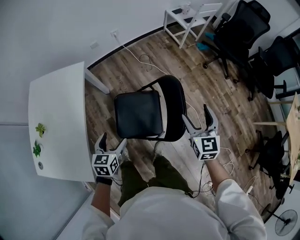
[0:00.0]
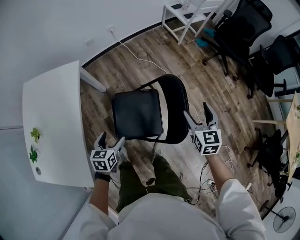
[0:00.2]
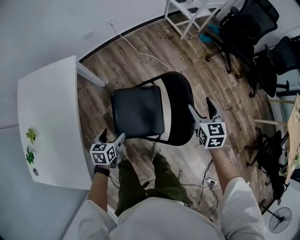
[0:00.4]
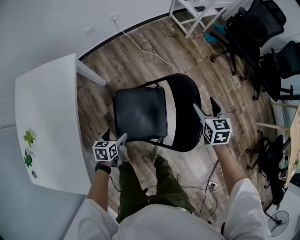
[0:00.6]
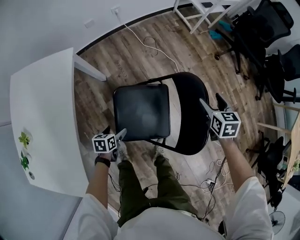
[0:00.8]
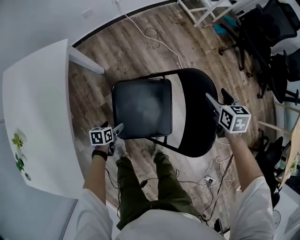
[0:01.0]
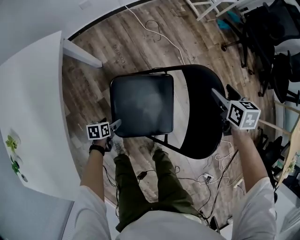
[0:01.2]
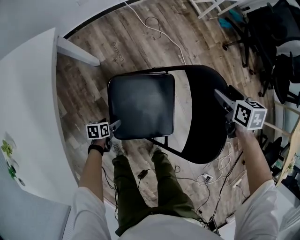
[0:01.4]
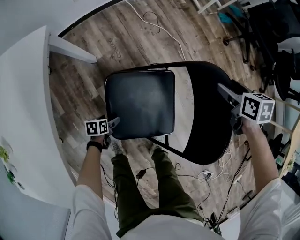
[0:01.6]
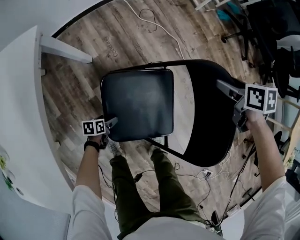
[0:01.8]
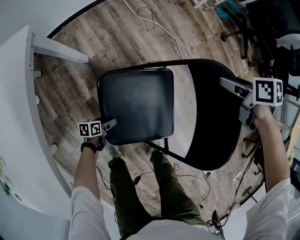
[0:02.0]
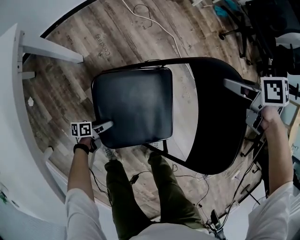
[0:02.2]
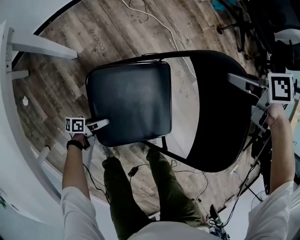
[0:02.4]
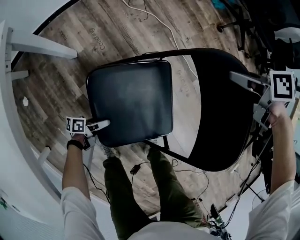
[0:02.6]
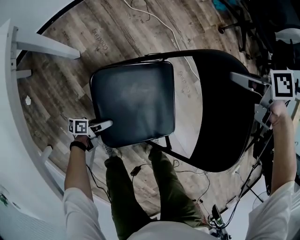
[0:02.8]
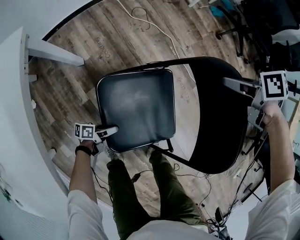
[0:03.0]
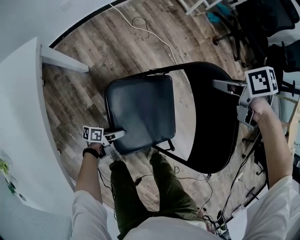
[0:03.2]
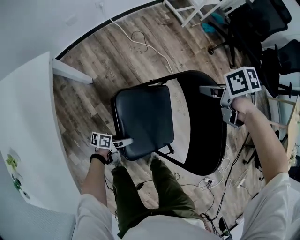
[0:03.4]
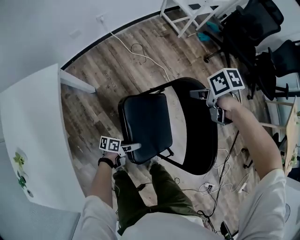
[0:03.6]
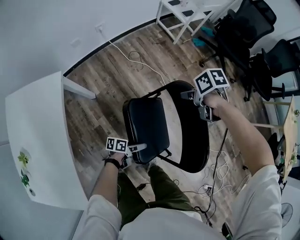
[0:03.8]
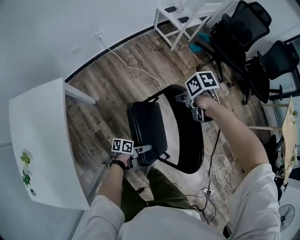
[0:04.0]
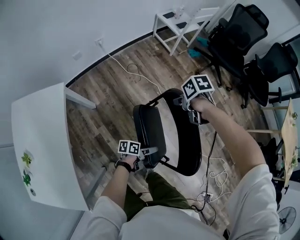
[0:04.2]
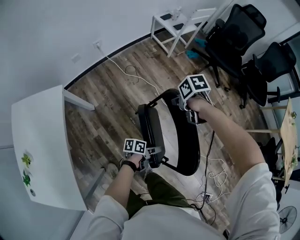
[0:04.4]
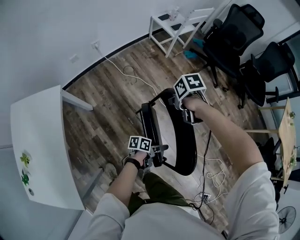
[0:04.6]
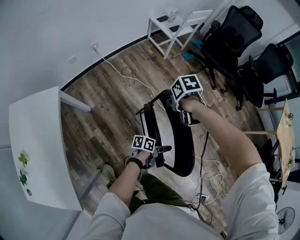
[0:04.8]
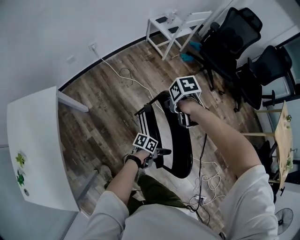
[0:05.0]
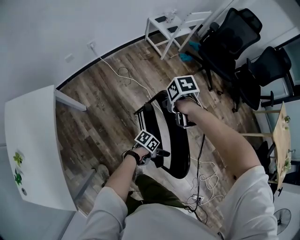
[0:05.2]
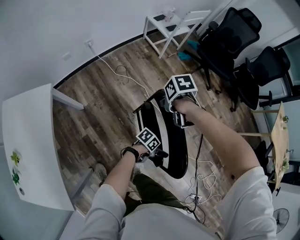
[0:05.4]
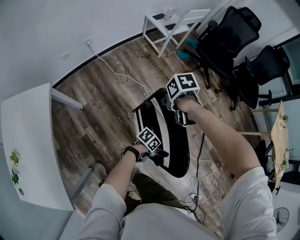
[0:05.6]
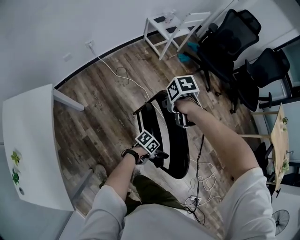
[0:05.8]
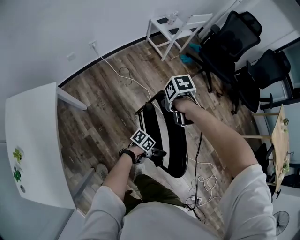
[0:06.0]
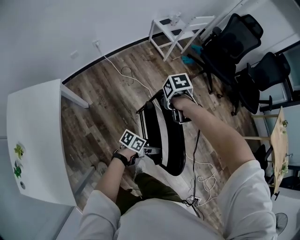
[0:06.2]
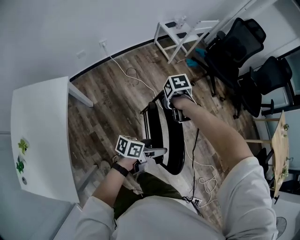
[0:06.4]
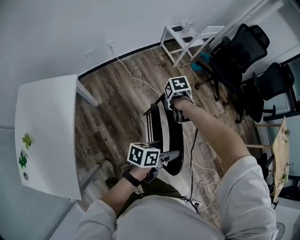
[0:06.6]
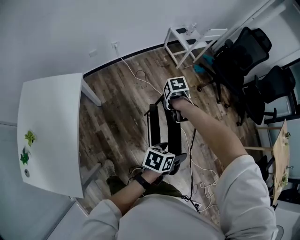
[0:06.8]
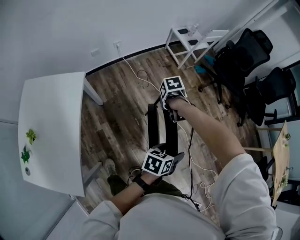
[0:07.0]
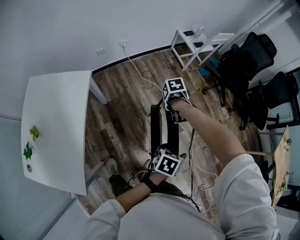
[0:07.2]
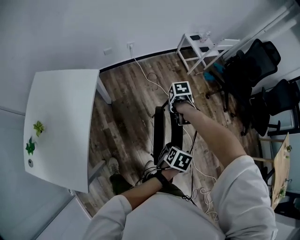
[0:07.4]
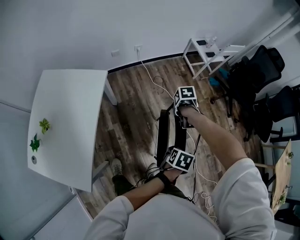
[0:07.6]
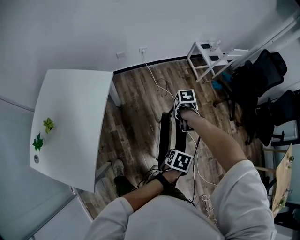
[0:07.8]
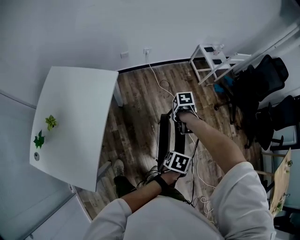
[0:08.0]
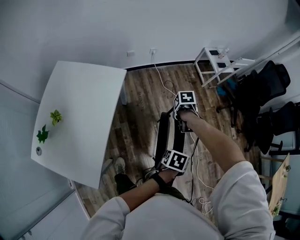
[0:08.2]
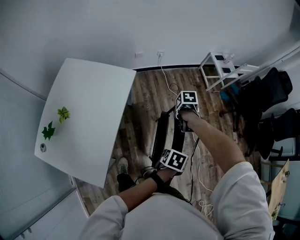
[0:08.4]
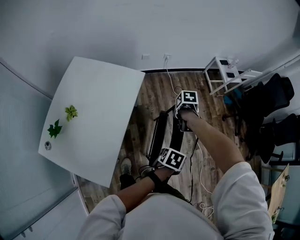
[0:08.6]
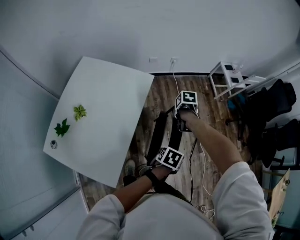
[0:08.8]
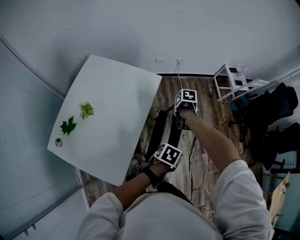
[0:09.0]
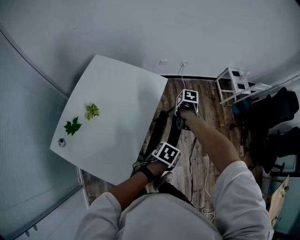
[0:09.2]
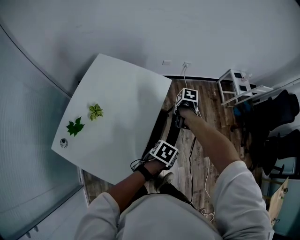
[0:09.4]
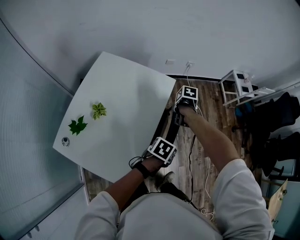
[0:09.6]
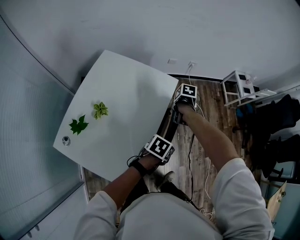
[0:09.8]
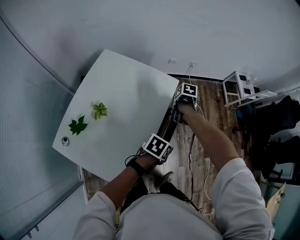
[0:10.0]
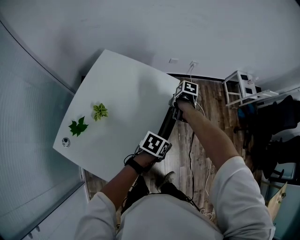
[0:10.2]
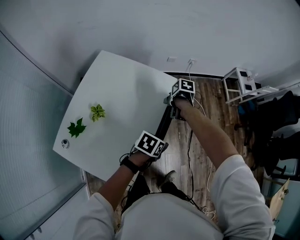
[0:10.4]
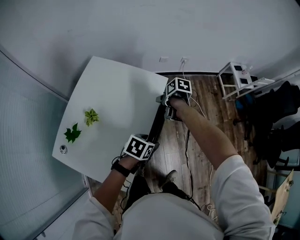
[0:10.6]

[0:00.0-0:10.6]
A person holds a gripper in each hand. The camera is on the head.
0:00.0 to 0:01.6: The left gripper shifts roughly 50 cm downward, and swivels approximately 40 degrees. The right gripper heads downward and forward, covering roughly 35 cm, and angles its fingers downward, by roughly 40 degrees.
0:01.6 to 0:03.0: The left gripper changes place by roughly 5 cm, and tilts its fingers about 40 degrees upward, while the right gripper swivels some 30 degrees, and closes its fingers.
0:03.0 to 0:04.6: The right gripper goes roughly 15 cm upward; the left gripper moves approximately 50 cm.
0:04.6 to 0:06.0: The left gripper swivels approximately 30 degrees.
0:06.0 to 0:07.6: The left gripper heads upward, covering about 20 cm, changes its angle by approximately 50 degrees, and closes. Meanwhile the right gripper ends up about 15 cm from where it was.
0:07.6 to 0:09.0: The right gripper ends up about 30 cm from where it was, while the left gripper shifts by approximately 30 cm.
0:09.0 to 0:10.6: The left gripper changes place by roughly 20 cm. Meanwhile the right gripper moves some 15 cm, and opens up.

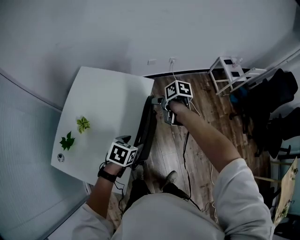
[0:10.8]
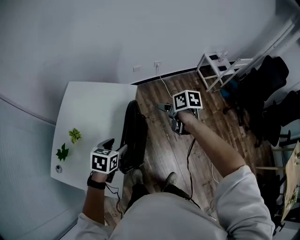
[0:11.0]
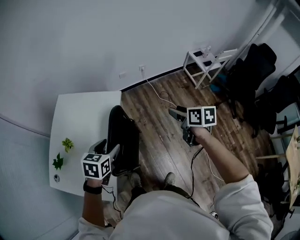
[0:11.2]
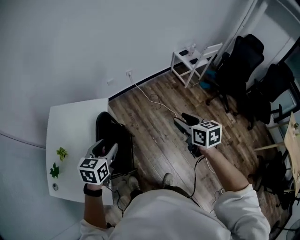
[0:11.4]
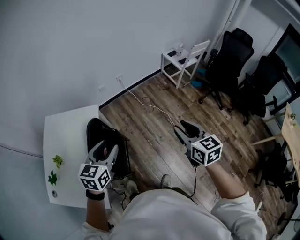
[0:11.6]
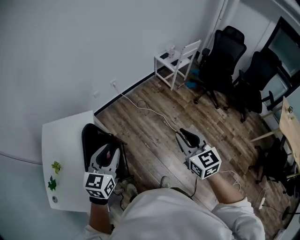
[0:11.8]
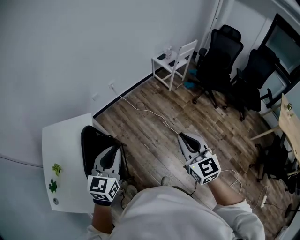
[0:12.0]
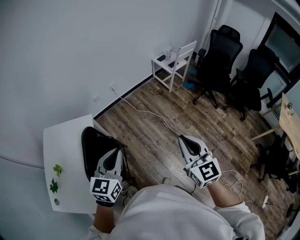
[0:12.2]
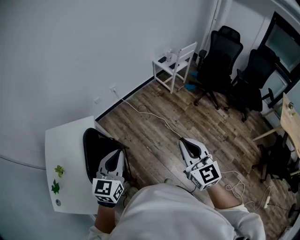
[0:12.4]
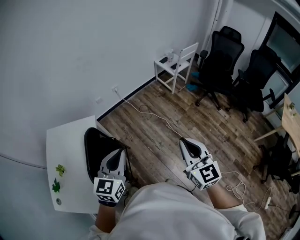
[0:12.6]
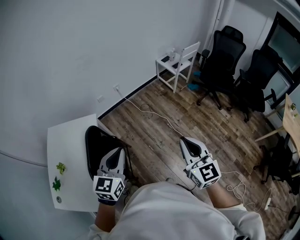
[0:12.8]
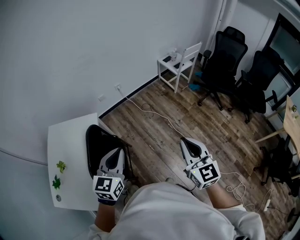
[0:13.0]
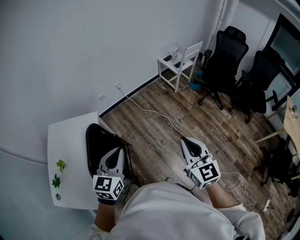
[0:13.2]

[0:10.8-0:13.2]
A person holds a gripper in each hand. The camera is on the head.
0:10.8 to 0:12.0: The left gripper is displaced to the right and upward by about 35 cm, tips its fingers upward by some 40 degrees, and closes, while the right gripper travels to the right, backward and upward by roughly 60 cm, tilts its fingers some 40 degrees upward, and closes its fingers.
0:12.0 to 0:13.2: The grippers move only a little.

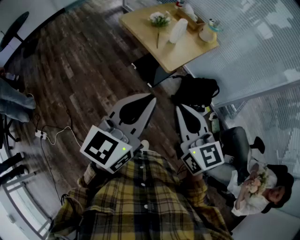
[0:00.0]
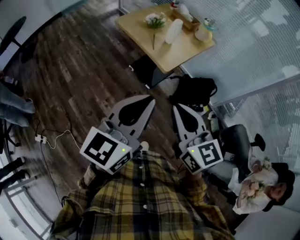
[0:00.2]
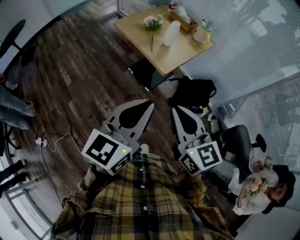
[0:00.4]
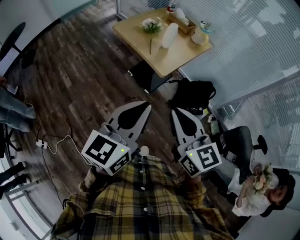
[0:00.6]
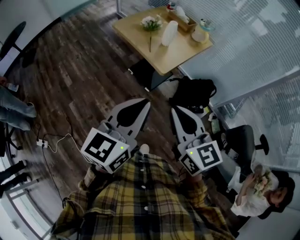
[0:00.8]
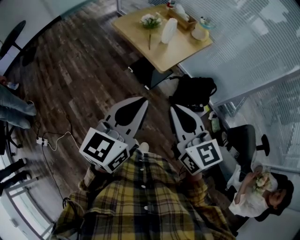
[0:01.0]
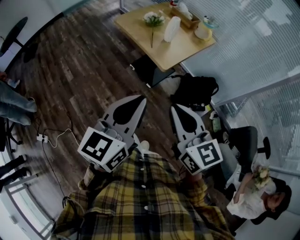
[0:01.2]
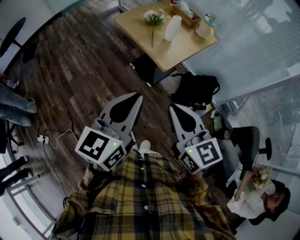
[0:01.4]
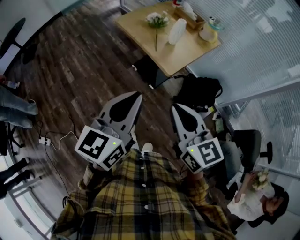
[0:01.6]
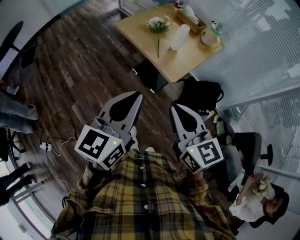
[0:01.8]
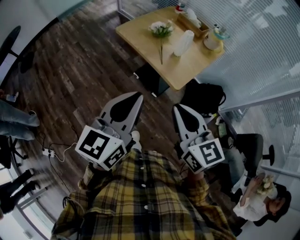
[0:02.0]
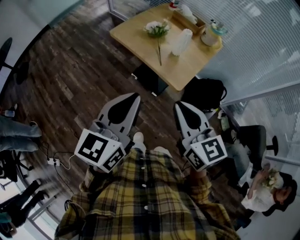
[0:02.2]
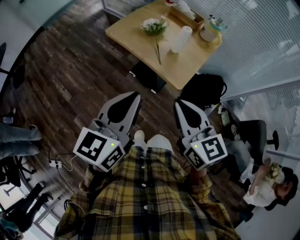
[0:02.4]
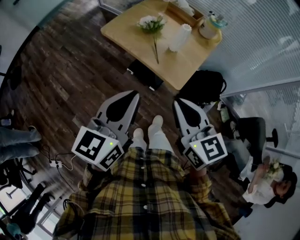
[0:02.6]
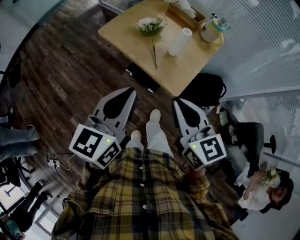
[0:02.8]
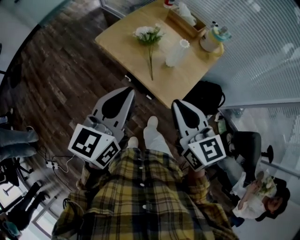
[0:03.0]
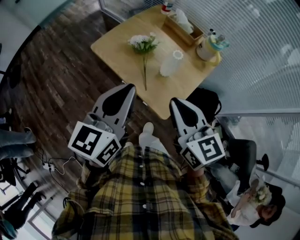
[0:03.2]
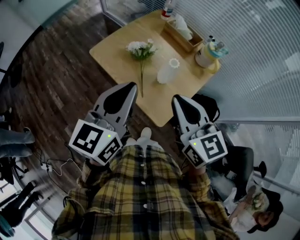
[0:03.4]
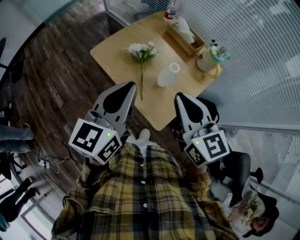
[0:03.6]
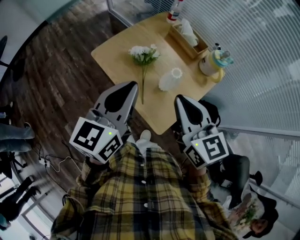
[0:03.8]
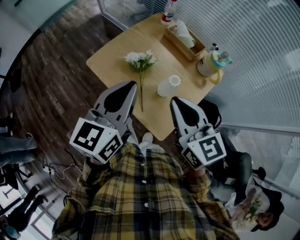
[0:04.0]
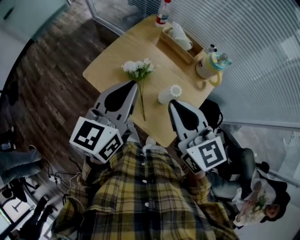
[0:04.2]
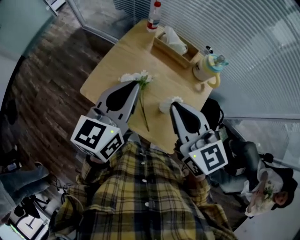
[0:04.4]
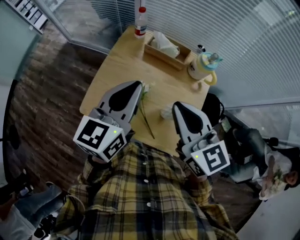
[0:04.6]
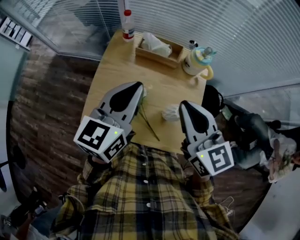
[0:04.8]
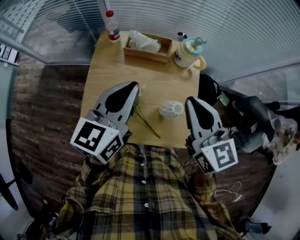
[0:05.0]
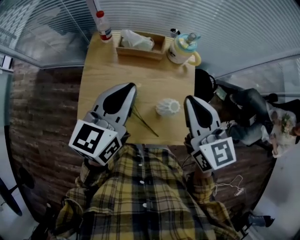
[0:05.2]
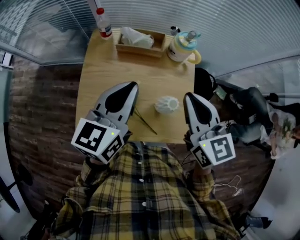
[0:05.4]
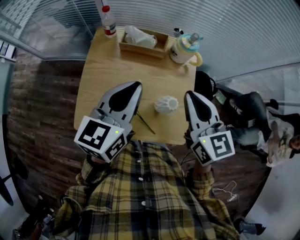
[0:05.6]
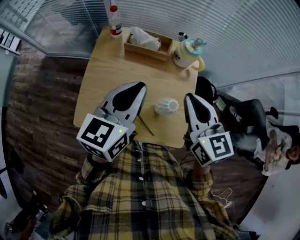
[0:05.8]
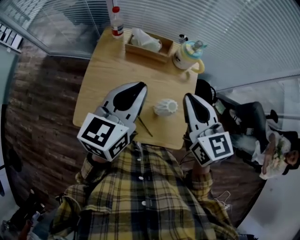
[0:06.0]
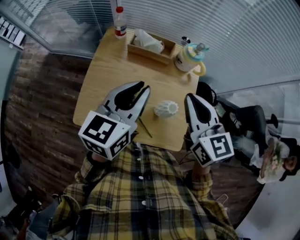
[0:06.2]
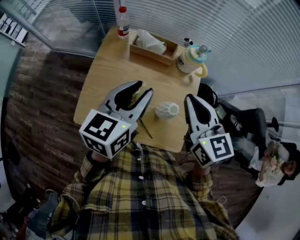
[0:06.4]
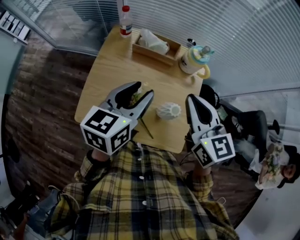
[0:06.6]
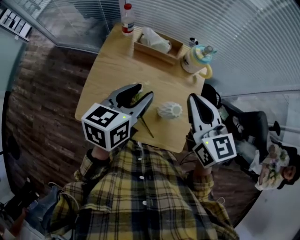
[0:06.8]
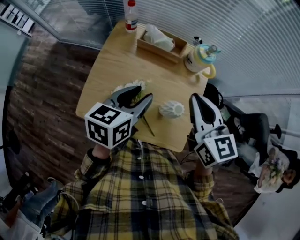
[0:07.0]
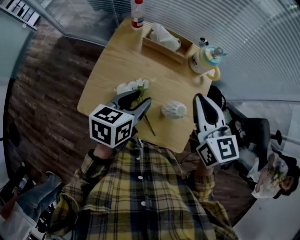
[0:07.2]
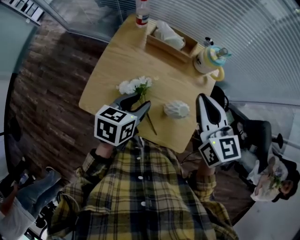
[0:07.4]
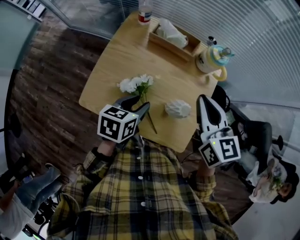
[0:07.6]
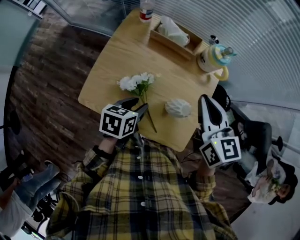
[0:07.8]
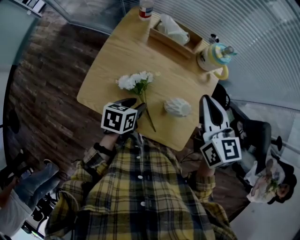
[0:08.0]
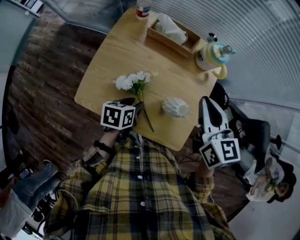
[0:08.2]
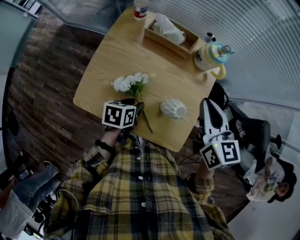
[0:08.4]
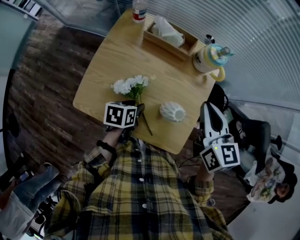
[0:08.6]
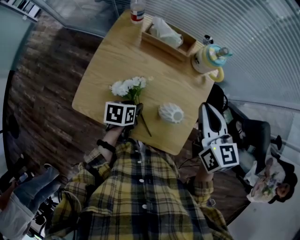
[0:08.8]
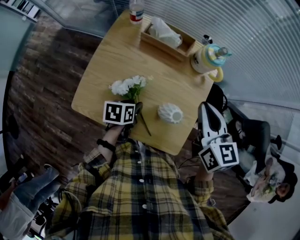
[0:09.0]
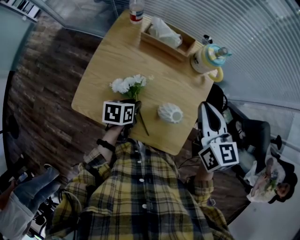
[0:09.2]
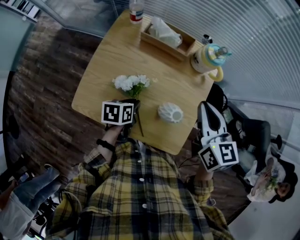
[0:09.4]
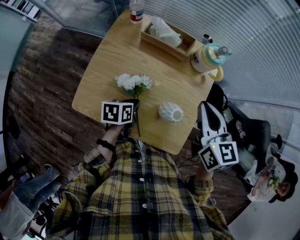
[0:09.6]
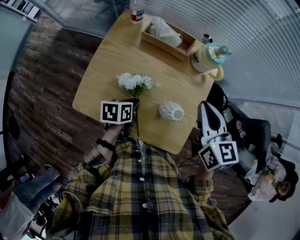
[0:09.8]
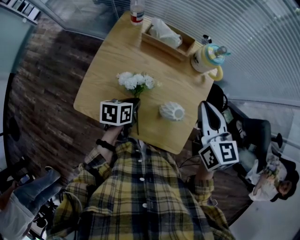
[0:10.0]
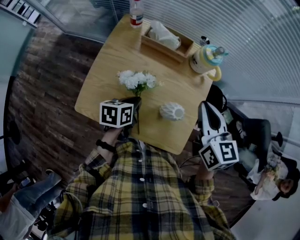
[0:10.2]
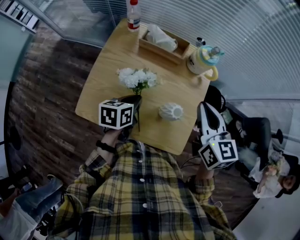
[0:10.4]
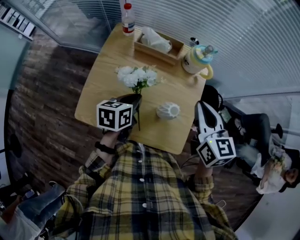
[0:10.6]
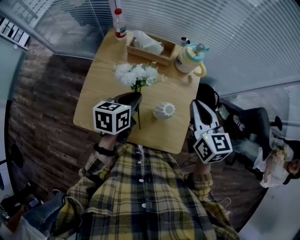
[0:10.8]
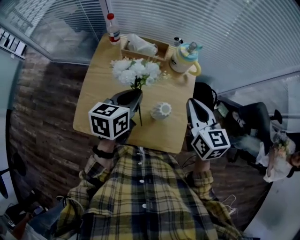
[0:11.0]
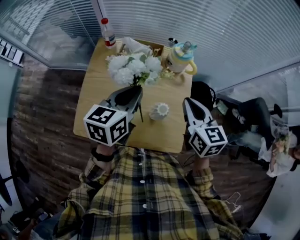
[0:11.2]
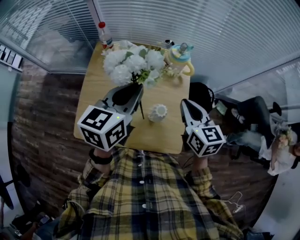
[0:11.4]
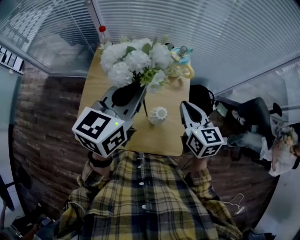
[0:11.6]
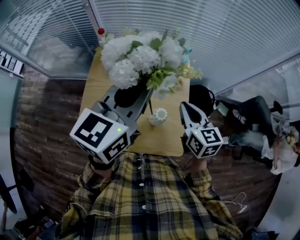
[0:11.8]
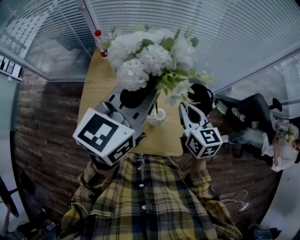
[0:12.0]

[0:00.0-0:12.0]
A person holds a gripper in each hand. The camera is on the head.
0:00.0 to 0:01.6: The left gripper moves approximately 5 cm.
0:01.6 to 0:03.0: Both grippers move forward, about 25 cm.
0:03.0 to 0:04.4: Both grippers move forward, some 25 cm.
0:04.4 to 0:06.0: The right gripper moves about 10 cm, and swivels roughly 30 degrees. Meanwhile the left gripper ends up some 10 cm from where it was, and swivels about 20 degrees.
0:06.0 to 0:07.6: The left gripper is displaced downward by roughly 20 cm, tips its fingers downward by about 30 degrees, and opens.
0:07.6 to 0:09.0: The left gripper shifts some 10 cm downward; the right gripper ends up about 5 cm from where it was.
0:09.0 to 0:10.4: The left gripper moves upward, some 10 cm, and closes up.
0:10.4 to 0:12.0: The left gripper shifts some 30 cm upward, and angles its fingers upward, by some 40 degrees.
